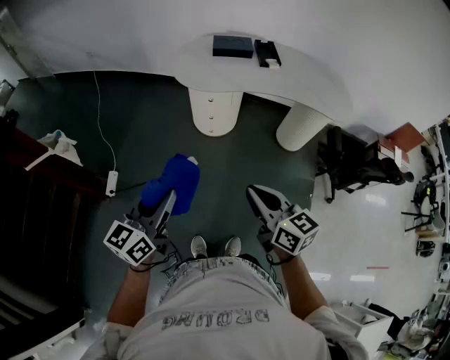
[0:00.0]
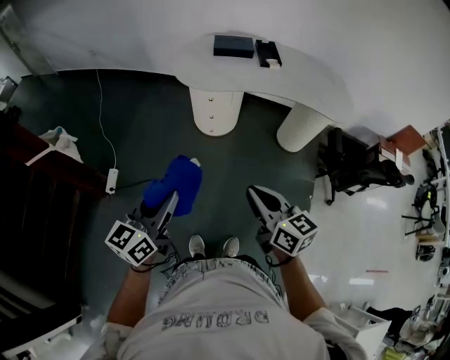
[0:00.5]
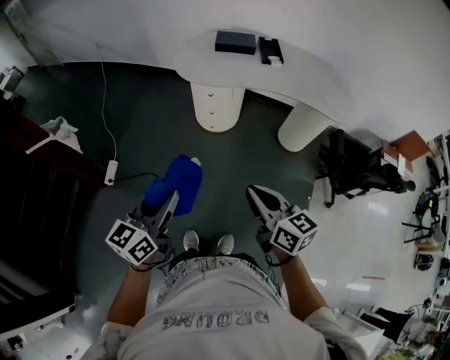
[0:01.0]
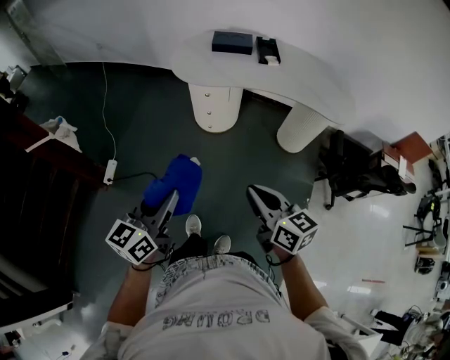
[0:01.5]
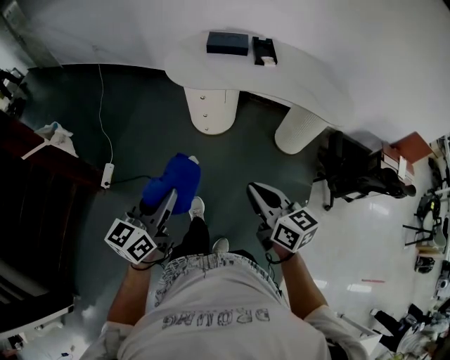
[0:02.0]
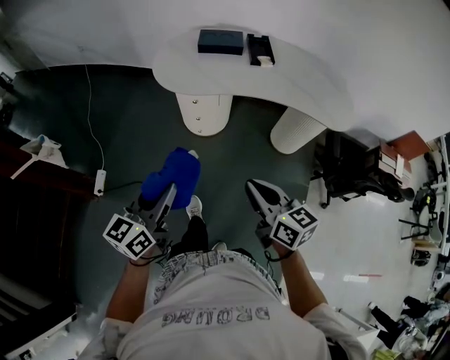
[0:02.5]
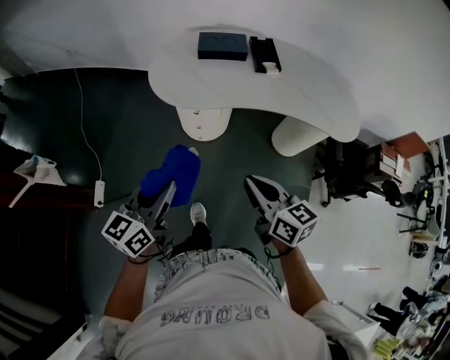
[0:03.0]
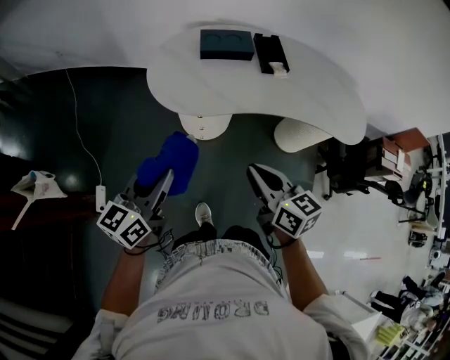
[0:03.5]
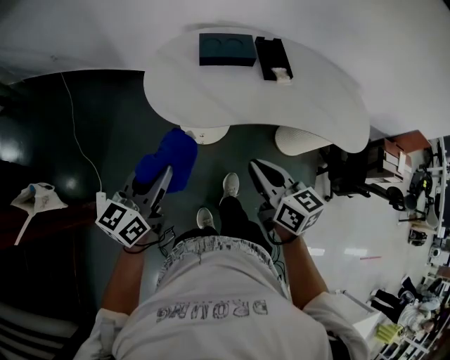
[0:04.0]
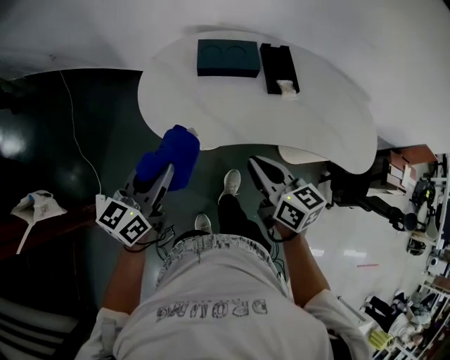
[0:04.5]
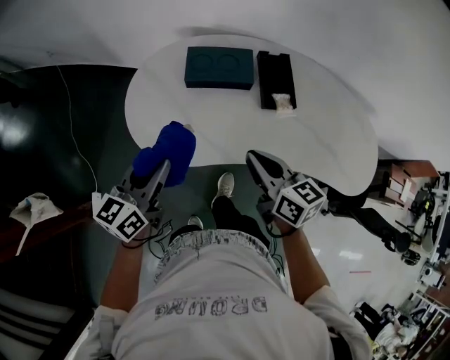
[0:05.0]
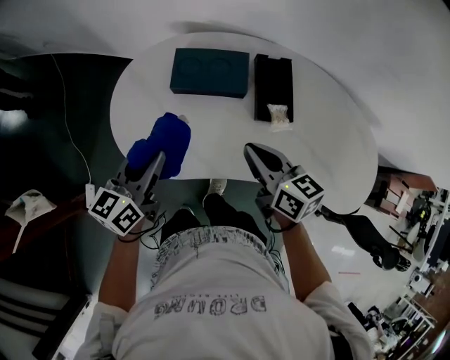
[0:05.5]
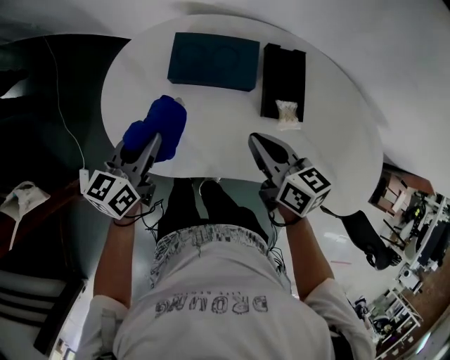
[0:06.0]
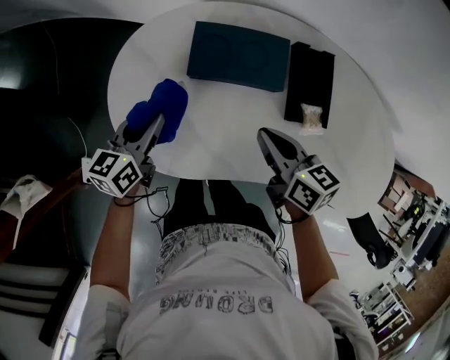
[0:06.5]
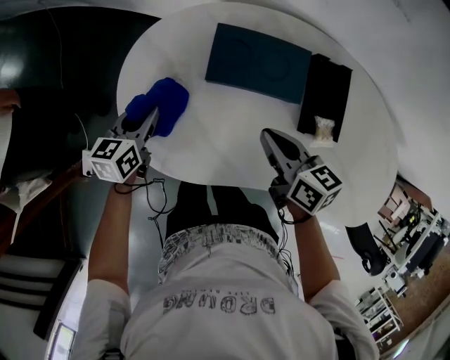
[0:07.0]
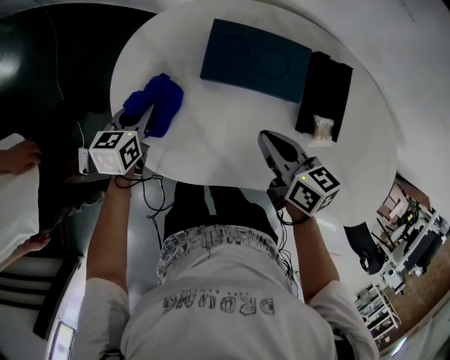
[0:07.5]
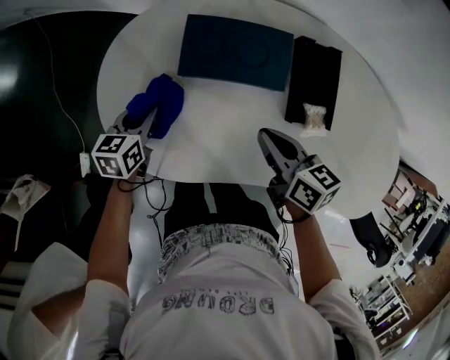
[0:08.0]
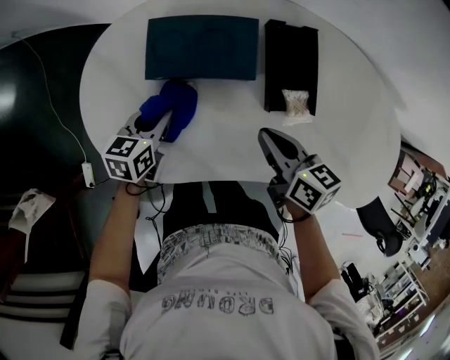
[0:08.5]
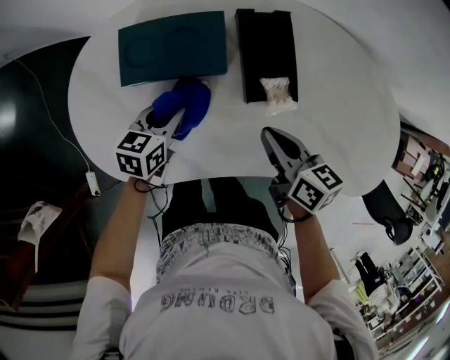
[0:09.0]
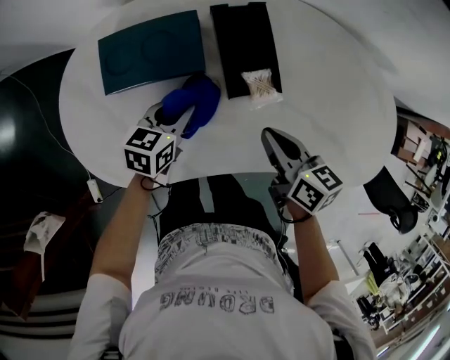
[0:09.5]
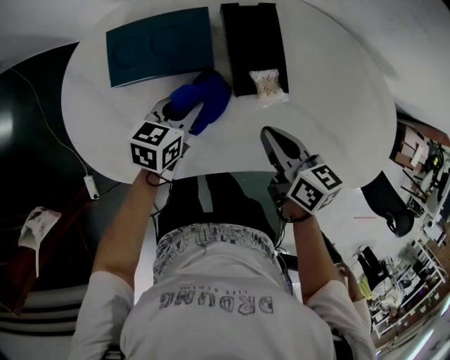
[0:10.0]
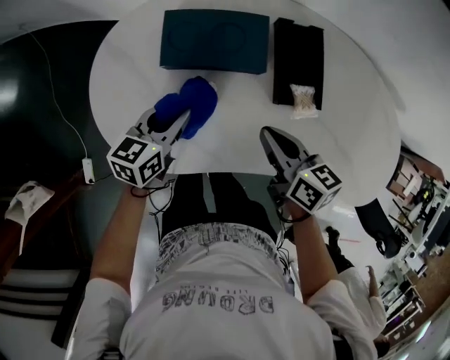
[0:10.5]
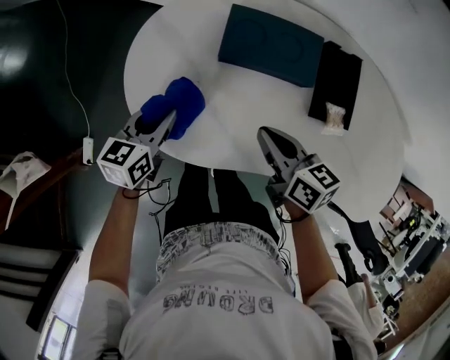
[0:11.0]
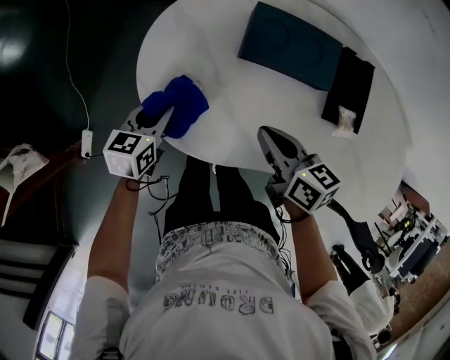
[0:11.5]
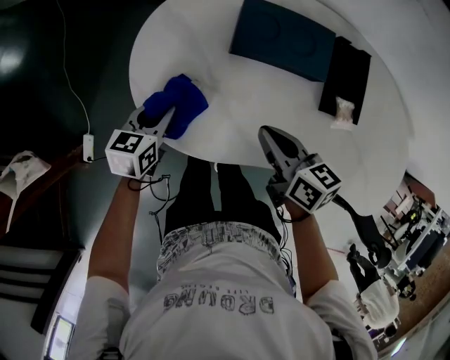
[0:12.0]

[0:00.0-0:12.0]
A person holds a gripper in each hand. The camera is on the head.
0:00.0 to 0:02.0: The two grippers go approximately 10 cm to the right.
0:02.0 to 0:04.0: Both grippers move forward, roughly 40 cm.
0:04.0 to 0:06.0: The right gripper is displaced forward and to the right by roughly 35 cm. Meanwhile the left gripper moves forward, about 30 cm.
0:06.0 to 0:08.0: The left gripper travels downward and forward by roughly 20 cm, and rotates some 20 degrees, while the right gripper travels downward by about 5 cm.
0:08.0 to 0:10.0: The right gripper moves to the right, some 15 cm, while the left gripper travels to the right by roughly 25 cm, and changes its angle by roughly 30 degrees.
0:10.0 to 0:12.0: The grippers both shift to the left by some 25 cm. The left gripper changes its angle by about 20 degrees.

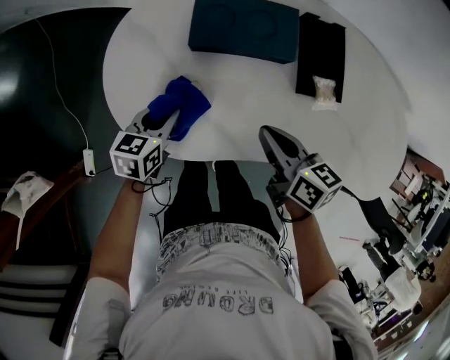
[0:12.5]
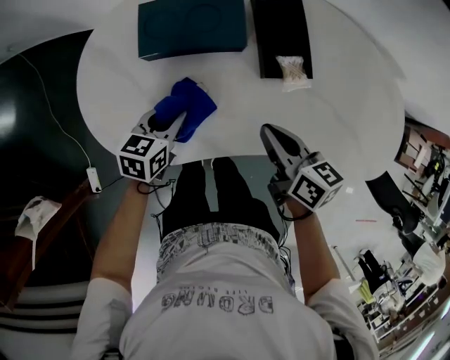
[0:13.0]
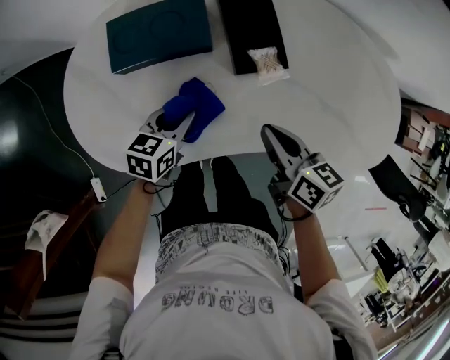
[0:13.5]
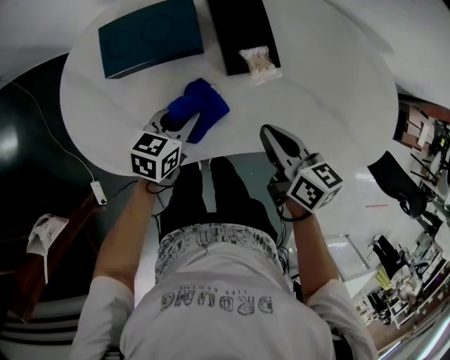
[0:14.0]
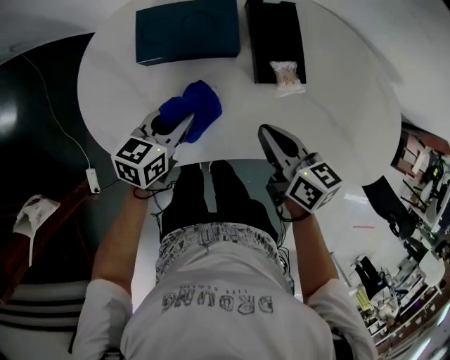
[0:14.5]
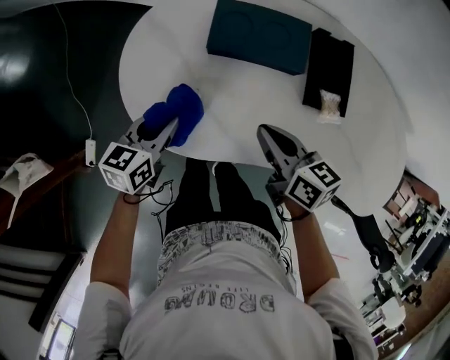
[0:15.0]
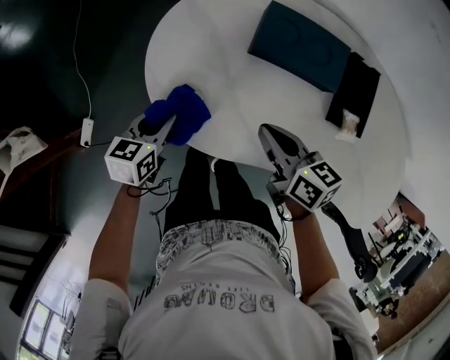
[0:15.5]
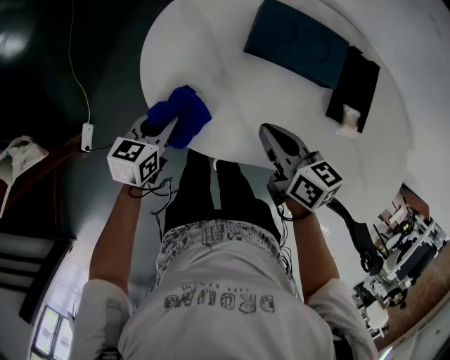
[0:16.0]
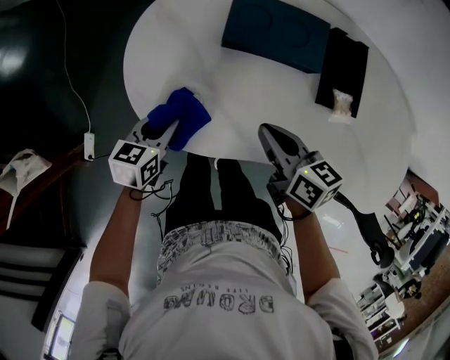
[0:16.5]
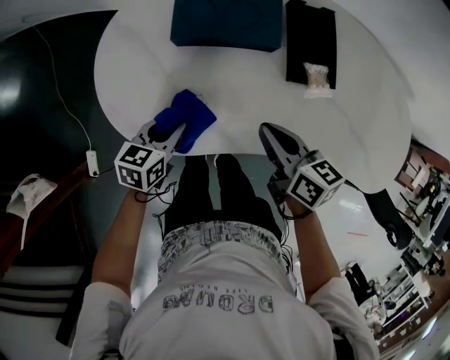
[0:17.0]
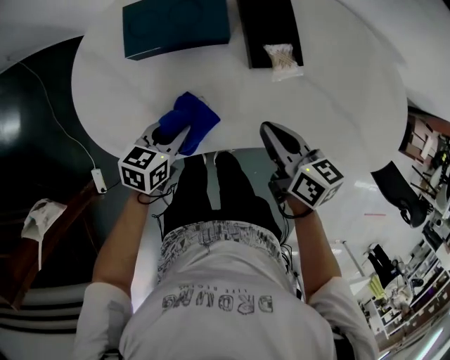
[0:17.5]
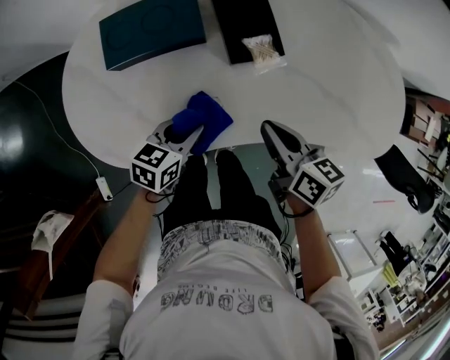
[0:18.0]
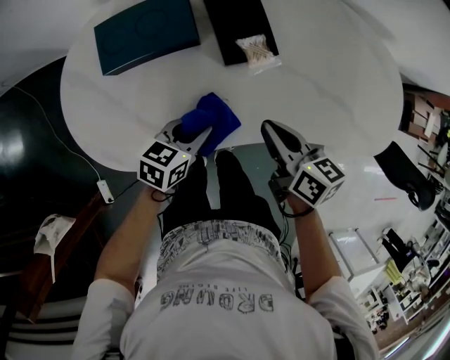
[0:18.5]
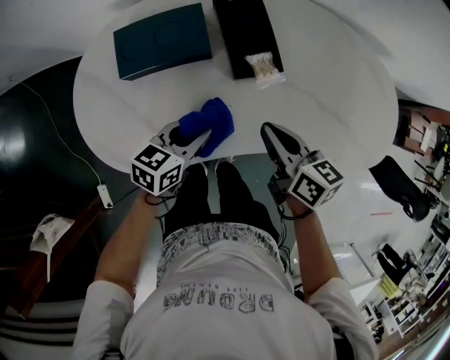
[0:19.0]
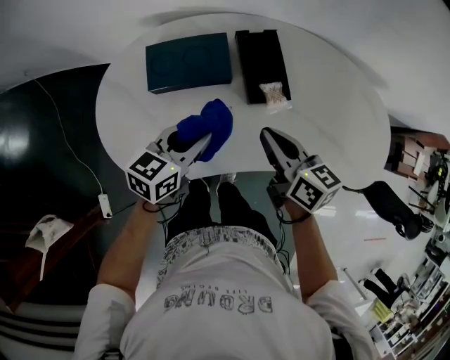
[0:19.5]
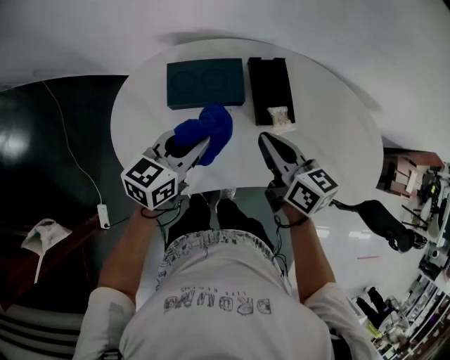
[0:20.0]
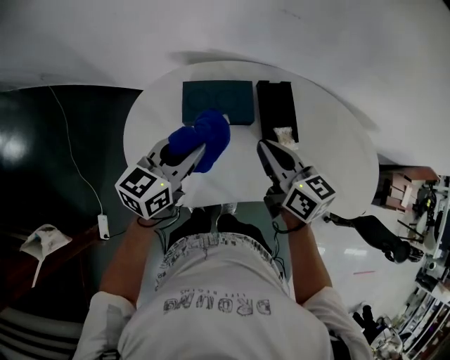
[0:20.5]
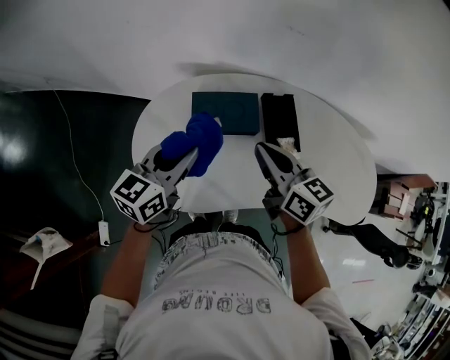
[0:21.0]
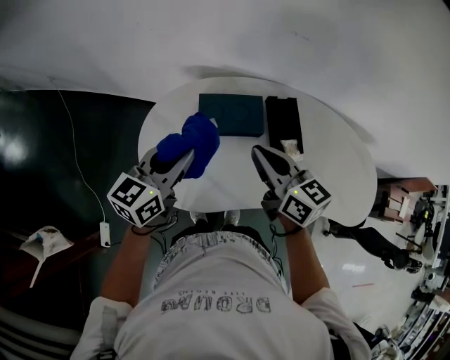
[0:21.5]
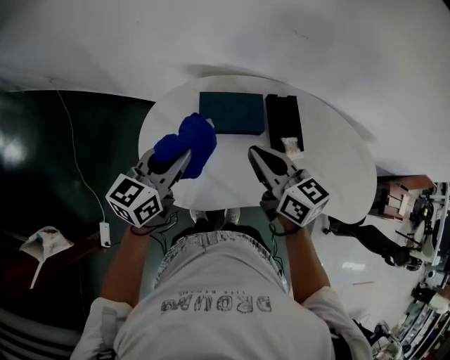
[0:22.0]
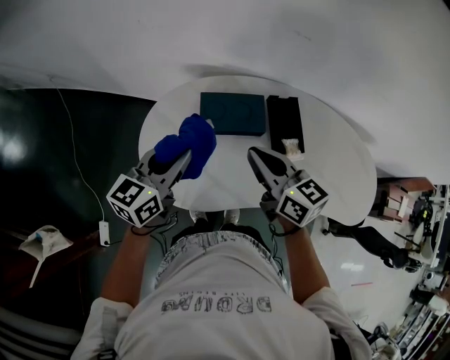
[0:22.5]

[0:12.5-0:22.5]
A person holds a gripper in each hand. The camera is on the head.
0:12.5 to 0:14.5: Both grippers travel together to the right, approximately 10 cm.
0:14.5 to 0:16.5: Both grippers travel together to the left, approximately 15 cm.
0:16.5 to 0:18.5: The left gripper ends up approximately 30 cm from where it was, and changes its angle by about 30 degrees. The right gripper shifts by approximately 20 cm, and changes its angle by about 30 degrees.
0:18.5 to 0:20.5: The left gripper moves upward and to the left, about 30 cm, and turns by roughly 30 degrees, while the right gripper shifts some 25 cm upward, to the left and forward, and swivels about 20 degrees.
0:20.5 to 0:22.5: Both grippers move to the left, roughly 10 cm.

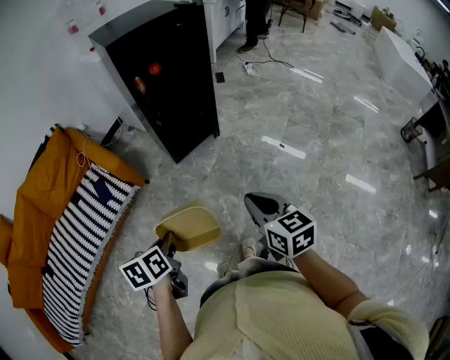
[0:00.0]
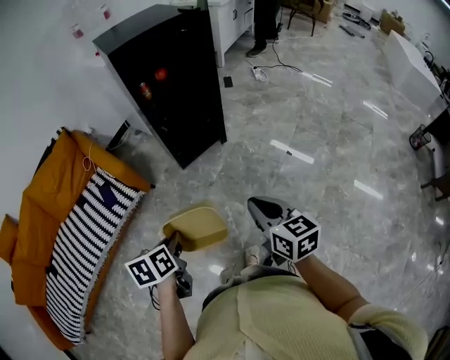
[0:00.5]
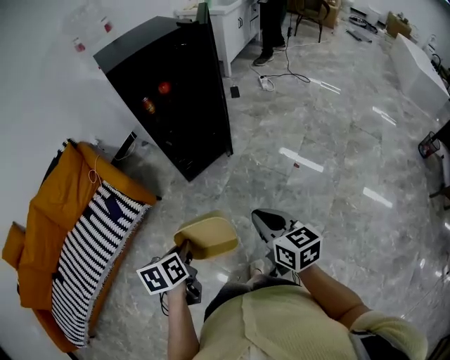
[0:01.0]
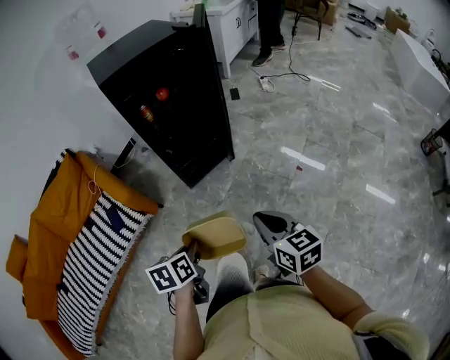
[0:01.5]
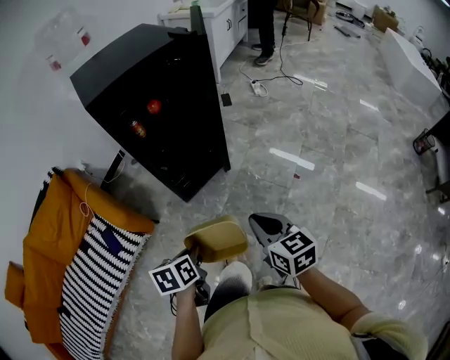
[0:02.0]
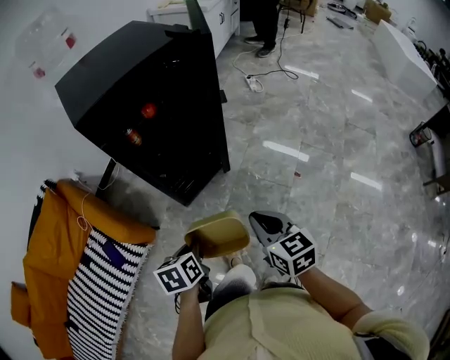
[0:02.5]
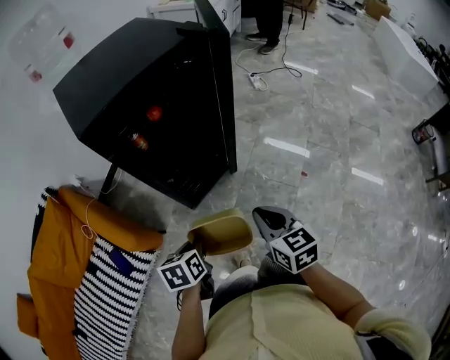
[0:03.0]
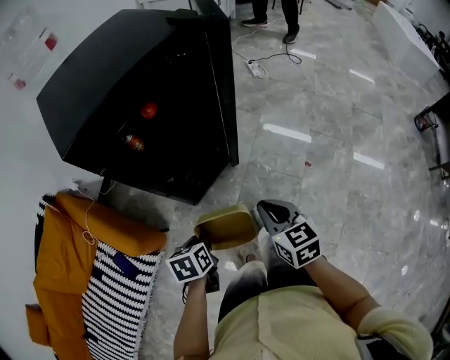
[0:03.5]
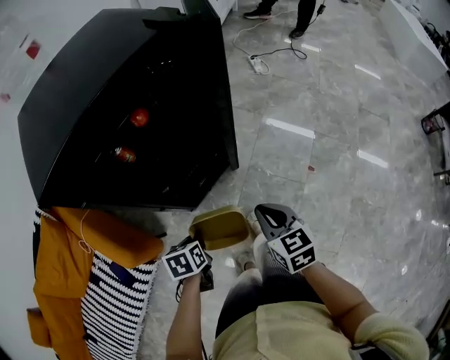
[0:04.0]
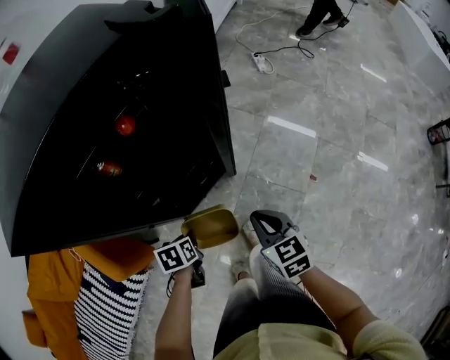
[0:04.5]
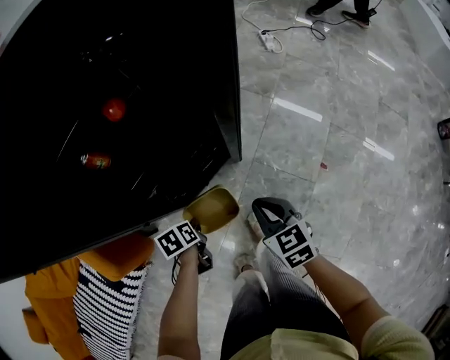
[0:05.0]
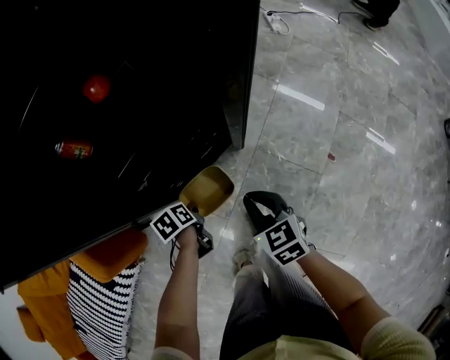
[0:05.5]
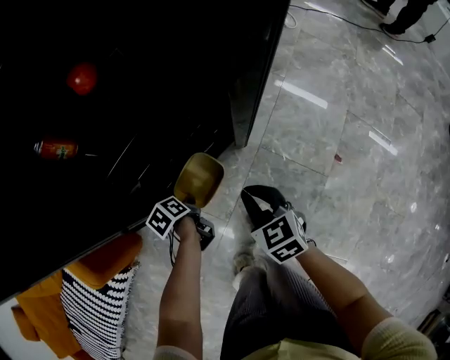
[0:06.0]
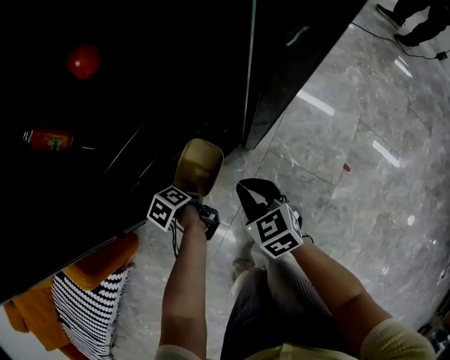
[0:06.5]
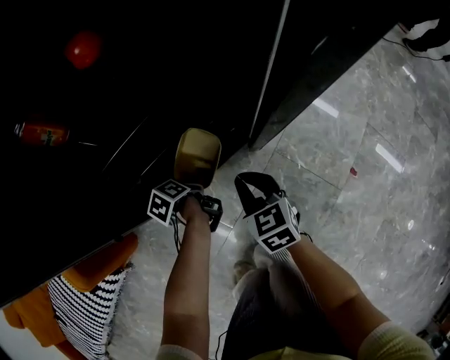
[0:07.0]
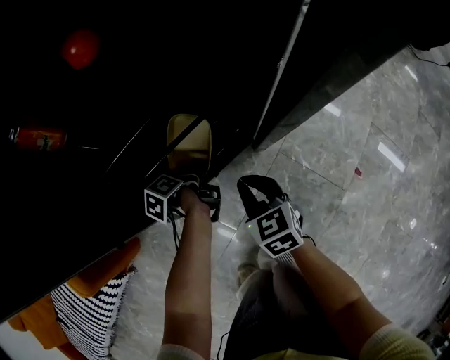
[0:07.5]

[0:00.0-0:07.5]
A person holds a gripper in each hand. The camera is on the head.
0:00.0 to 0:02.0: Both grippers travel together forward, roughly 20 cm.
0:02.0 to 0:04.0: Both grippers move forward and downward, approximately 25 cm.
0:04.0 to 0:05.5: Both grippers move downward and forward, some 25 cm. The left gripper turns by about 30 degrees.
0:05.5 to 0:07.5: The left gripper travels forward and downward by some 15 cm, and rolls counterclockwise, seen from behind, by roughly 40 degrees, while the right gripper goes about 15 cm downward and forward.
